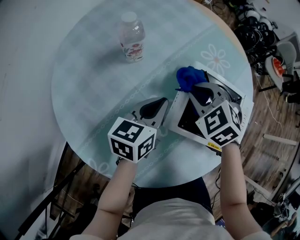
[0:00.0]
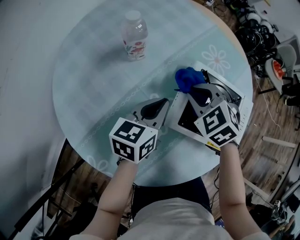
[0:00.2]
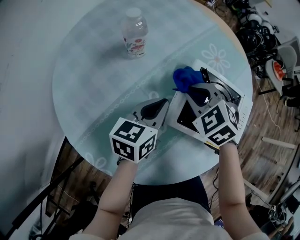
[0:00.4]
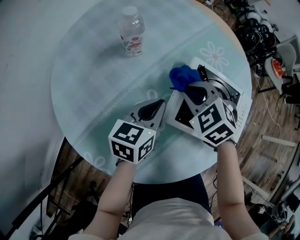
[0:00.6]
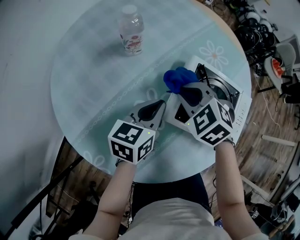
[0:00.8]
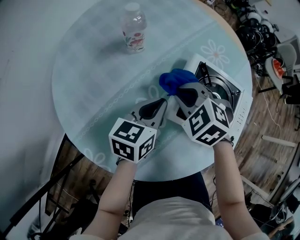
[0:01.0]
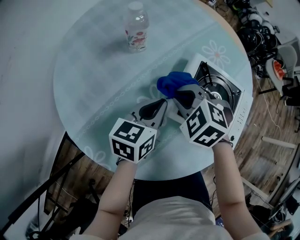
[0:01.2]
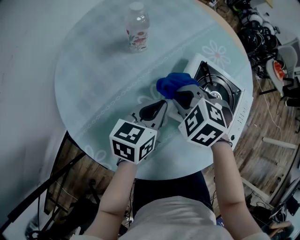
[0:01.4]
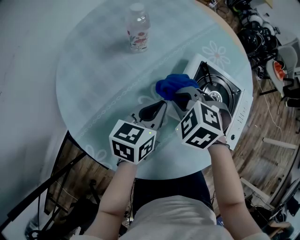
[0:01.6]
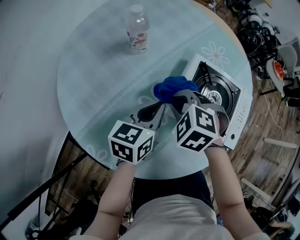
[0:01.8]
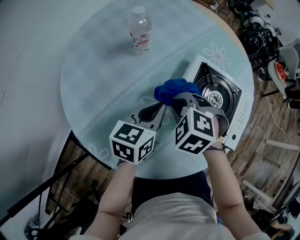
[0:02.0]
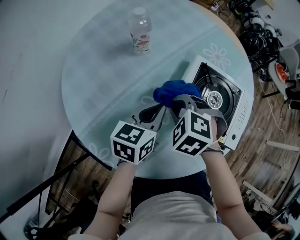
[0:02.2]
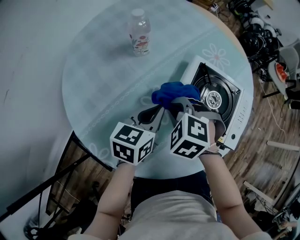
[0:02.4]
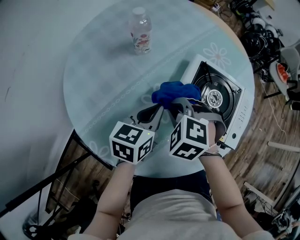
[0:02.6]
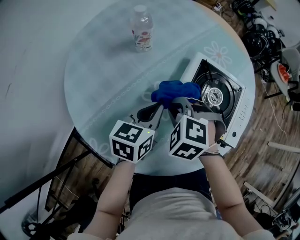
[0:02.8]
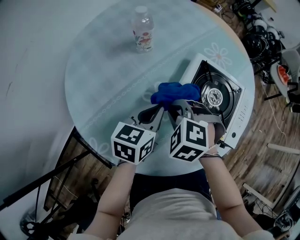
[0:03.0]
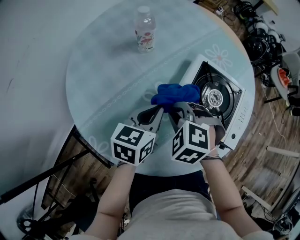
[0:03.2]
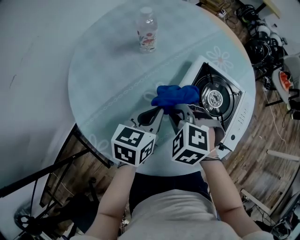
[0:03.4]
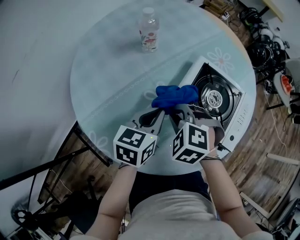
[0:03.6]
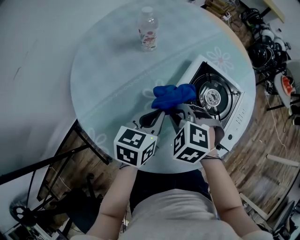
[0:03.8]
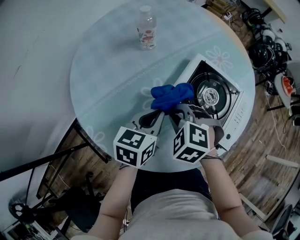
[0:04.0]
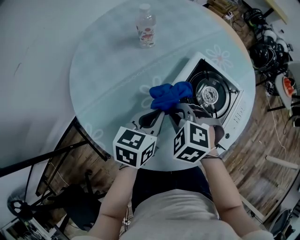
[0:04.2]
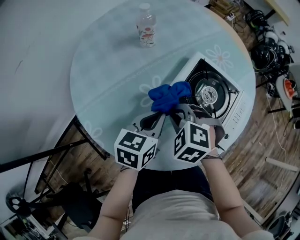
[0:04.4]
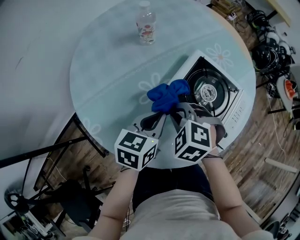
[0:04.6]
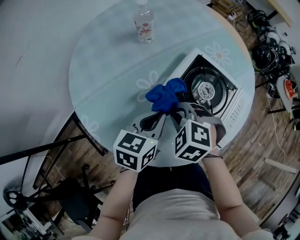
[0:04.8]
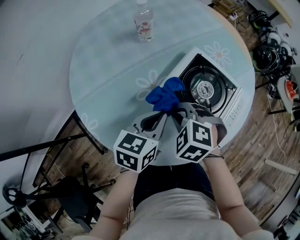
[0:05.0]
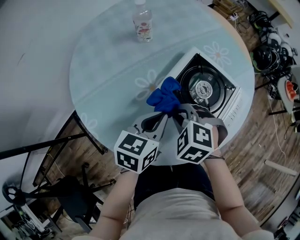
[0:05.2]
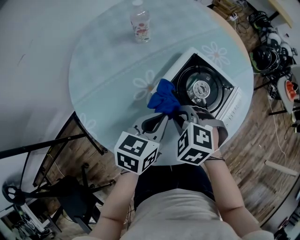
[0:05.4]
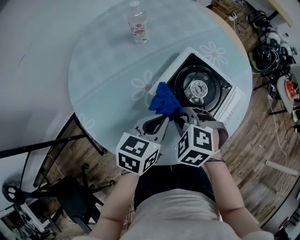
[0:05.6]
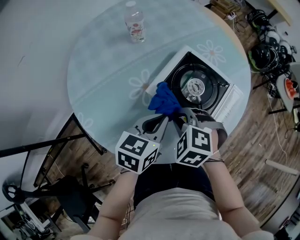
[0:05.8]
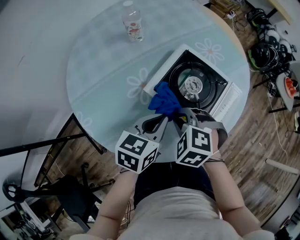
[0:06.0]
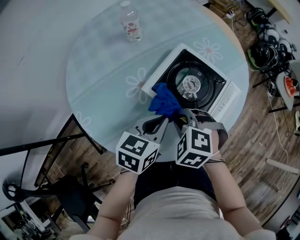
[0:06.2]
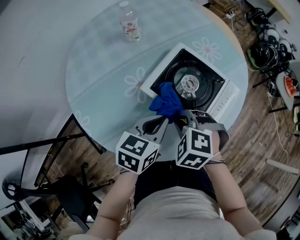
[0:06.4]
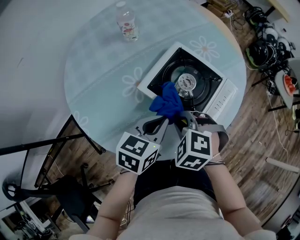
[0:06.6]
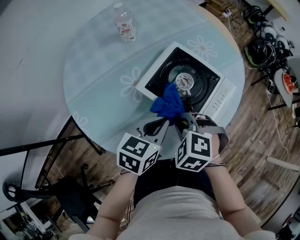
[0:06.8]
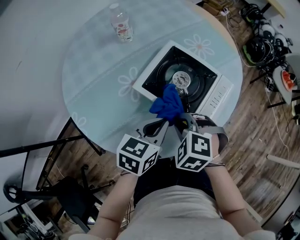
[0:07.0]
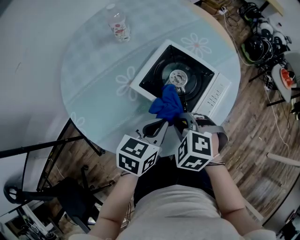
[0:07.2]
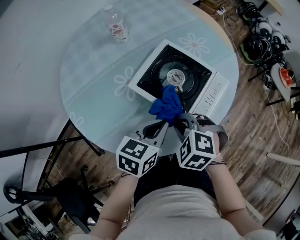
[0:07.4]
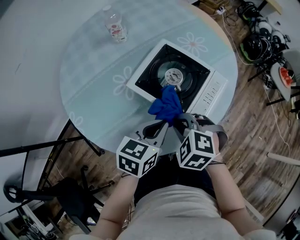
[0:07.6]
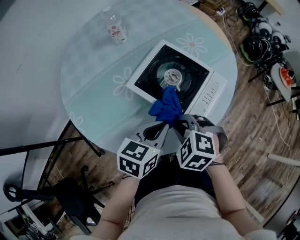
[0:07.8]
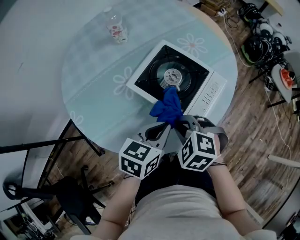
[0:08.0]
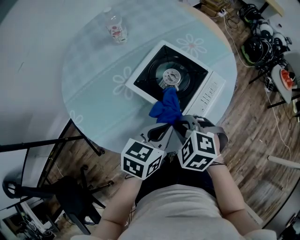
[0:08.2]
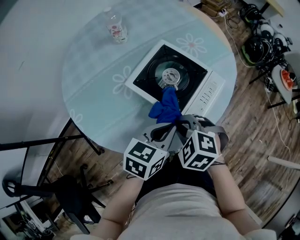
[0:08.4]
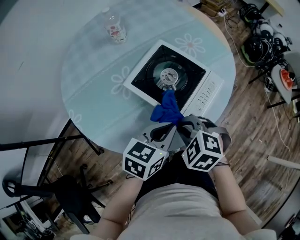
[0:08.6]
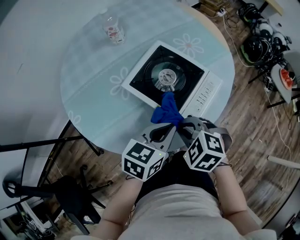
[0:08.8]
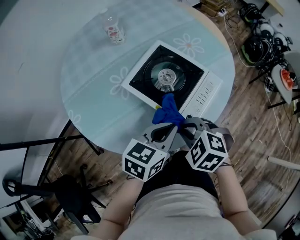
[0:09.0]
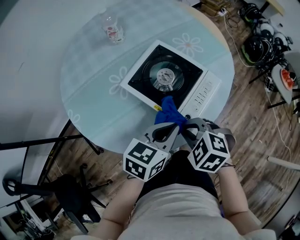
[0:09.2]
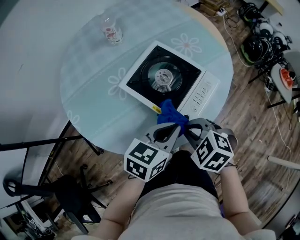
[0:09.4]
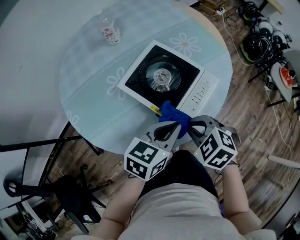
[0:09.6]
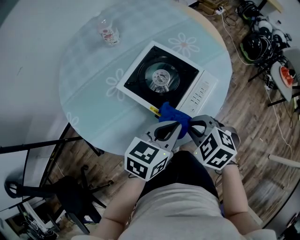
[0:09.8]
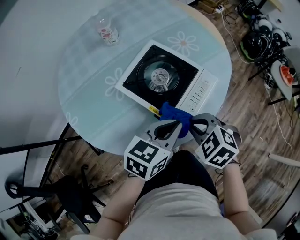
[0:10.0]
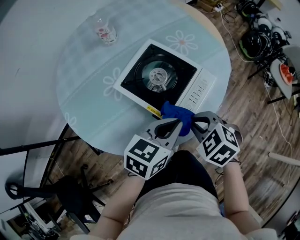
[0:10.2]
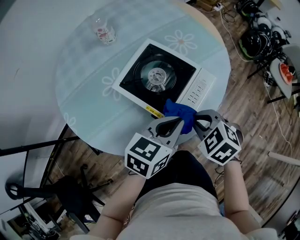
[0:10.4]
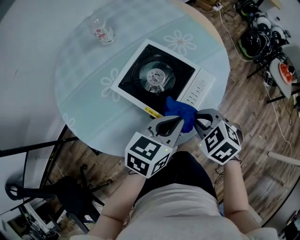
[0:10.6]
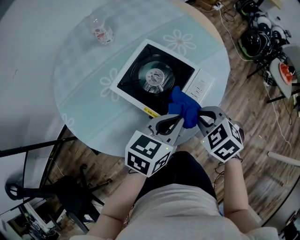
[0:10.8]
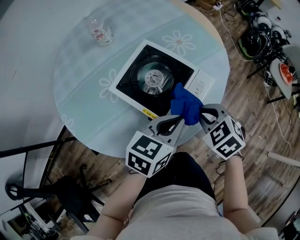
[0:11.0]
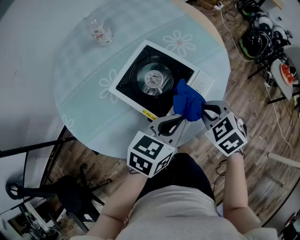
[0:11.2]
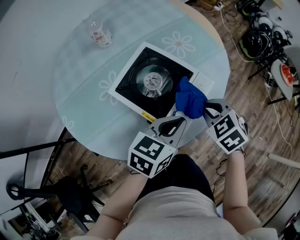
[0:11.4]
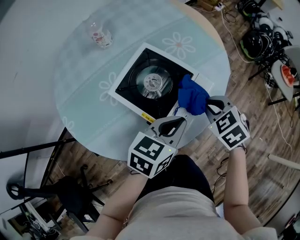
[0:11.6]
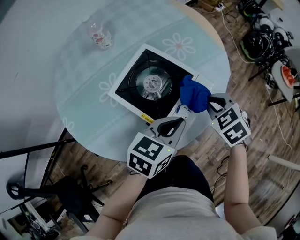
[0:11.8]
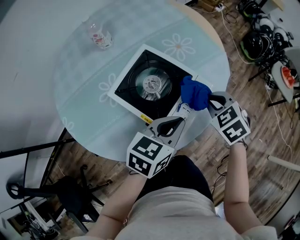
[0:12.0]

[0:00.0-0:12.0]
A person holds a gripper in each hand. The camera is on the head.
0:00.0 to 0:01.6: The left gripper goes roughly 5 cm backward, while the right gripper shifts some 10 cm backward and to the left.
0:01.6 to 0:03.0: The right gripper moves backward, roughly 5 cm.
0:03.0 to 0:04.4: The left gripper goes roughly 5 cm backward. The right gripper shifts by approximately 5 cm.
0:04.4 to 0:06.0: Both grippers move to the right, about 5 cm.
0:06.0 to 0:07.6: The two grippers go approximately 5 cm to the right.
0:07.6 to 0:09.0: The left gripper heads to the right, covering some 5 cm; the right gripper moves about 5 cm.
0:09.0 to 0:10.4: The right gripper goes about 10 cm to the right. The left gripper moves approximately 5 cm.
0:10.4 to 0:12.0: The right gripper goes approximately 15 cm forward and to the right.

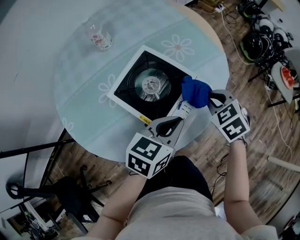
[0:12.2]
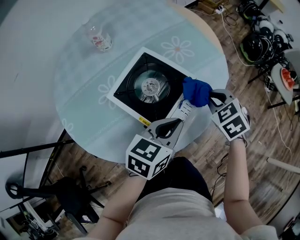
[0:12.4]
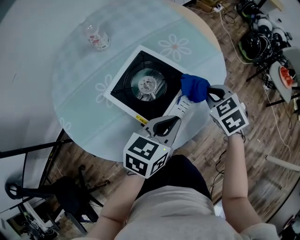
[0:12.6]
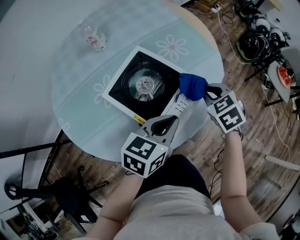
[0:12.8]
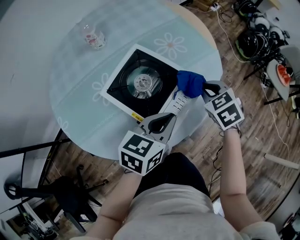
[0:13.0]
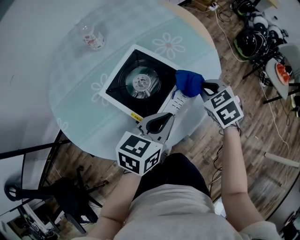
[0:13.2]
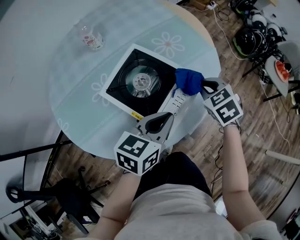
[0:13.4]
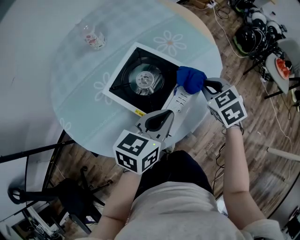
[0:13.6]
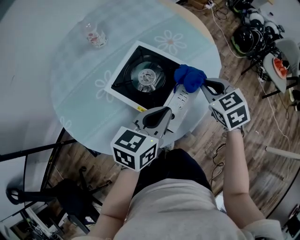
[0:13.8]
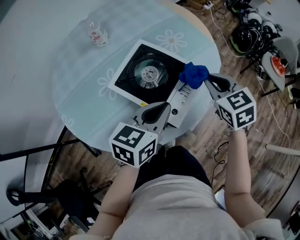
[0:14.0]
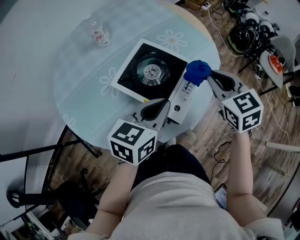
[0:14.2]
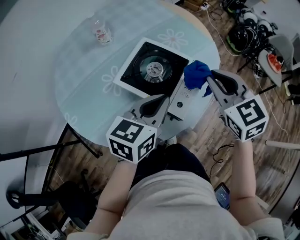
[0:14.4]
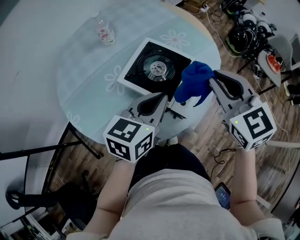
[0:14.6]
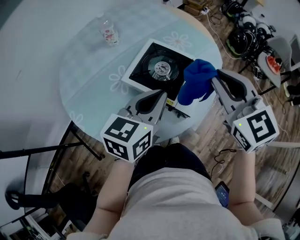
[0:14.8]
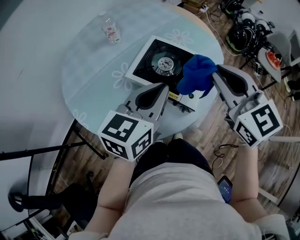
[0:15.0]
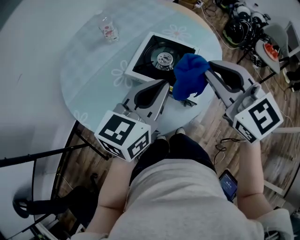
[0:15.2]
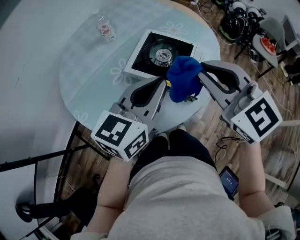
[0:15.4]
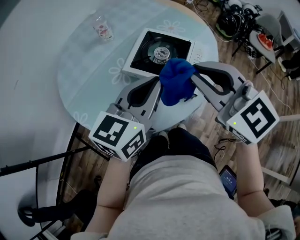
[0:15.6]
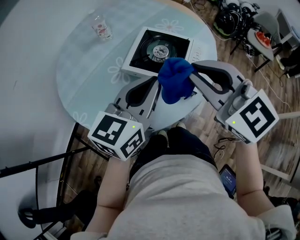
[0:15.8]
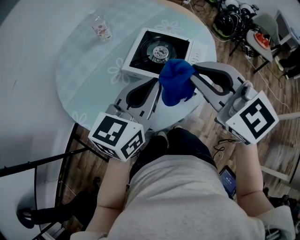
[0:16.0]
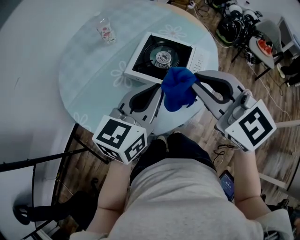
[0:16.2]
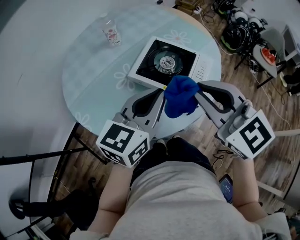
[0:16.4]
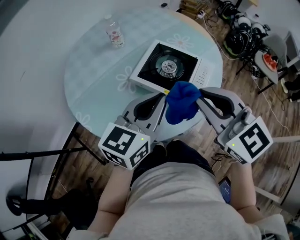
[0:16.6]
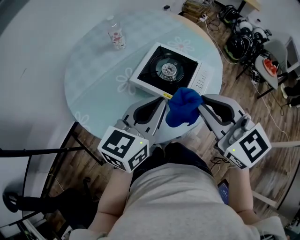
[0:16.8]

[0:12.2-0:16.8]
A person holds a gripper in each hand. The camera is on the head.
0:12.2 to 0:13.8: The grippers make only small movements.
0:13.8 to 0:15.2: The left gripper is displaced upward, to the left and backward by some 15 cm, and turns by approximately 20 degrees. Meanwhile the right gripper shifts approximately 25 cm upward, backward and to the left, and rotates about 30 degrees.
0:15.2 to 0:16.8: The right gripper shifts some 5 cm backward.

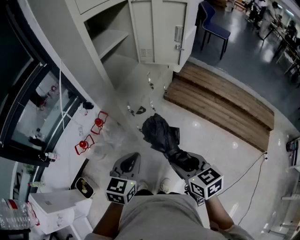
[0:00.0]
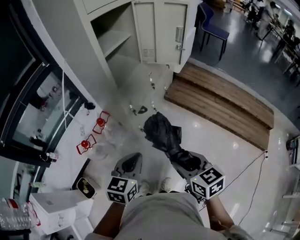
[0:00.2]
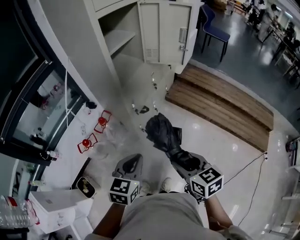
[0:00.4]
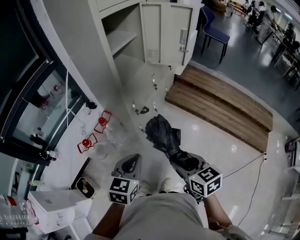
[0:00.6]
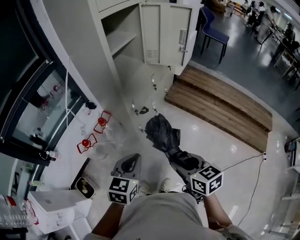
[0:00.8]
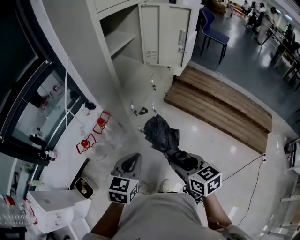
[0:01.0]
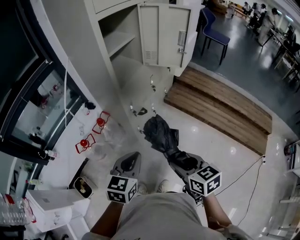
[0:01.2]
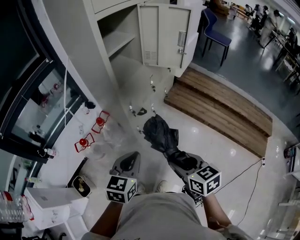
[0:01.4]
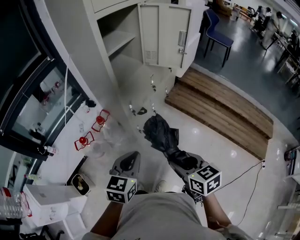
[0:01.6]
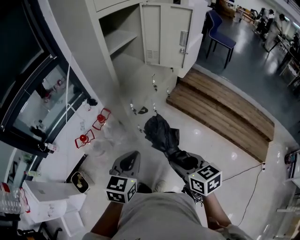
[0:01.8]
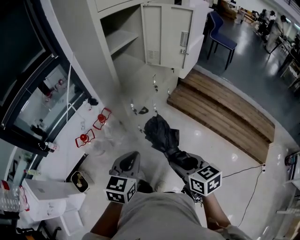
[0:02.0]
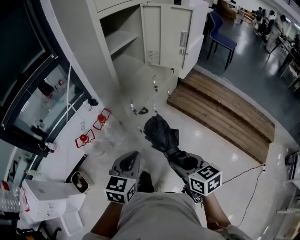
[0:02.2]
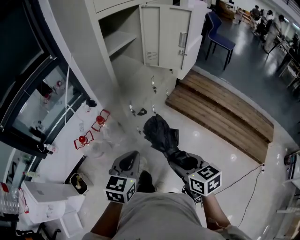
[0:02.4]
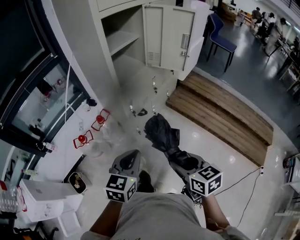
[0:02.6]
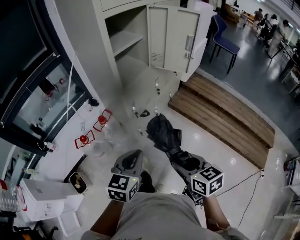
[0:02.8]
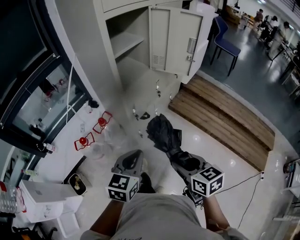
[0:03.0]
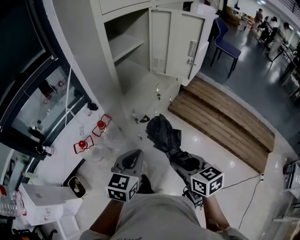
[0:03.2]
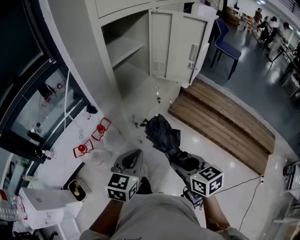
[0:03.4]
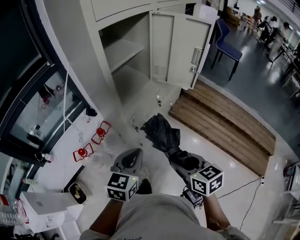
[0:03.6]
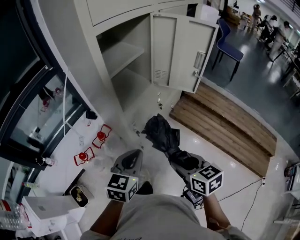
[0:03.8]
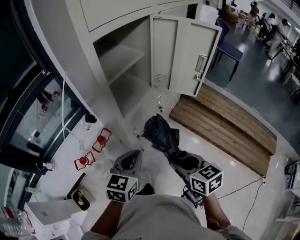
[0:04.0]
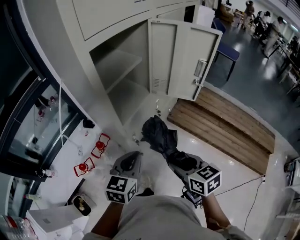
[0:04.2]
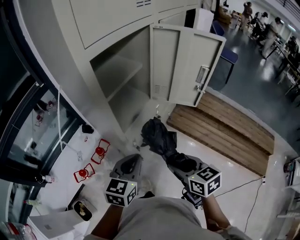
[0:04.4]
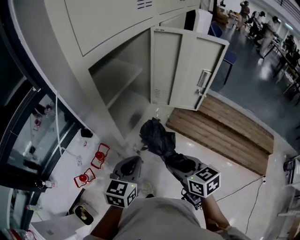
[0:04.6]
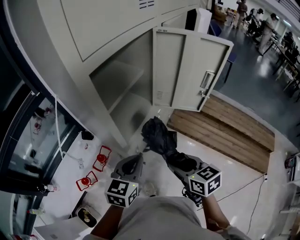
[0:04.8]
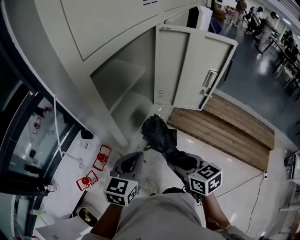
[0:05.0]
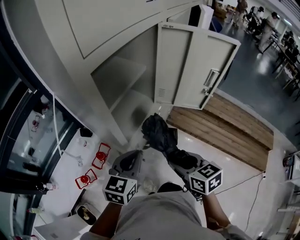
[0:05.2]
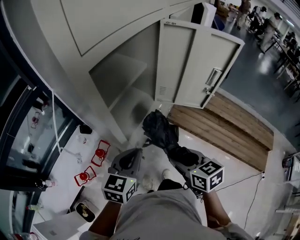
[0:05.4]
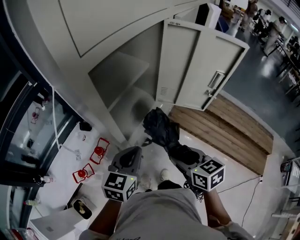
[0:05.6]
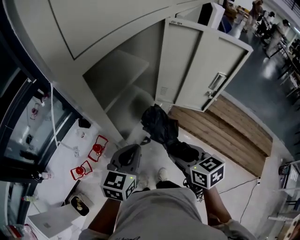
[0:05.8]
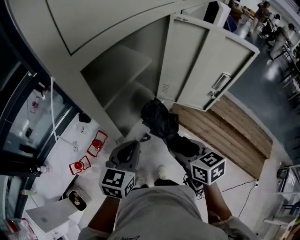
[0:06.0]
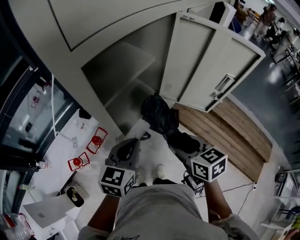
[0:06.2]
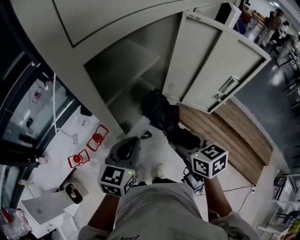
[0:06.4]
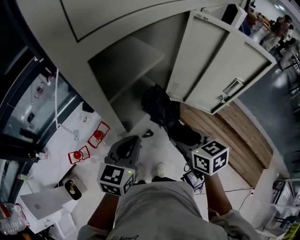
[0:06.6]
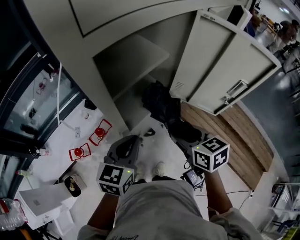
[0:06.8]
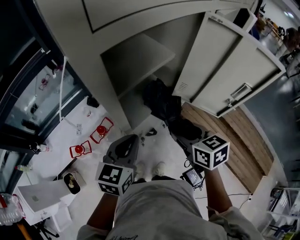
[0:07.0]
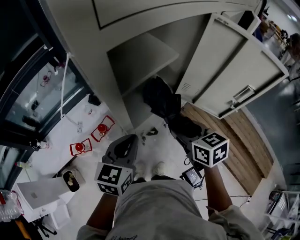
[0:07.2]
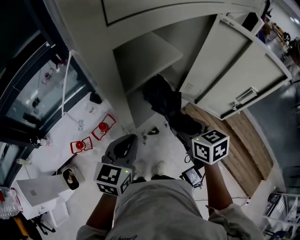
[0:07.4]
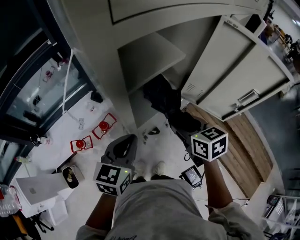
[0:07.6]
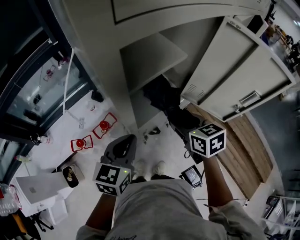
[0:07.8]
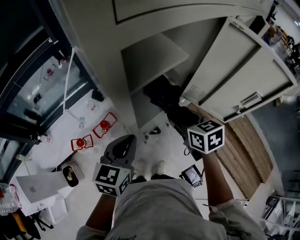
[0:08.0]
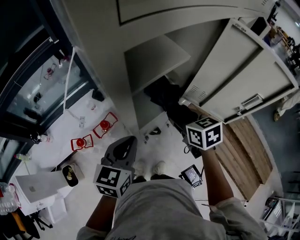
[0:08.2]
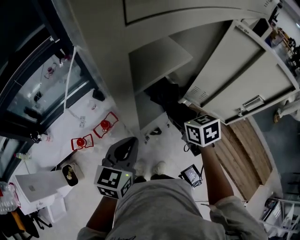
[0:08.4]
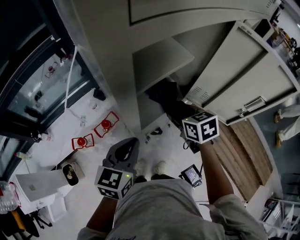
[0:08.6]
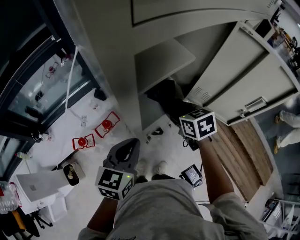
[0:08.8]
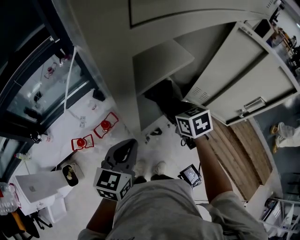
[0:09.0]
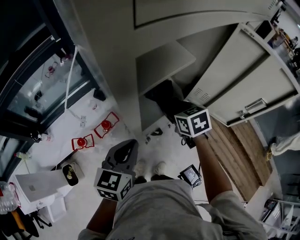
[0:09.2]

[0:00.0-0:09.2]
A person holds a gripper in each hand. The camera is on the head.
0:00.0 to 0:03.0: The grippers make only small movements.
0:03.0 to 0:04.6: The two grippers go roughly 25 cm forward.
0:04.6 to 0:06.2: Both grippers move forward, approximately 10 cm.
0:06.2 to 0:07.6: The right gripper shifts about 10 cm forward. The left gripper goes some 5 cm to the left.
0:07.6 to 0:09.2: The right gripper goes about 10 cm forward.
